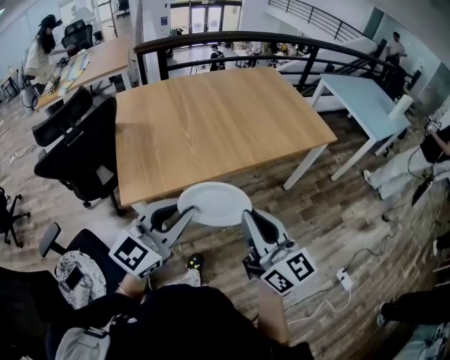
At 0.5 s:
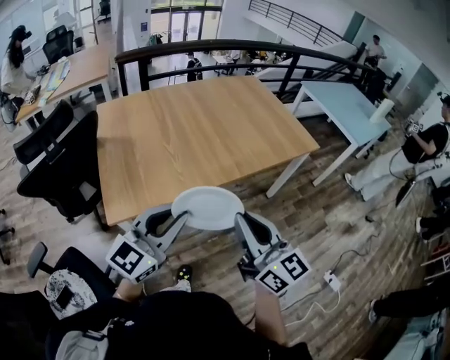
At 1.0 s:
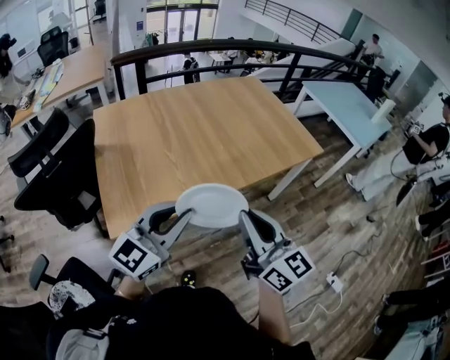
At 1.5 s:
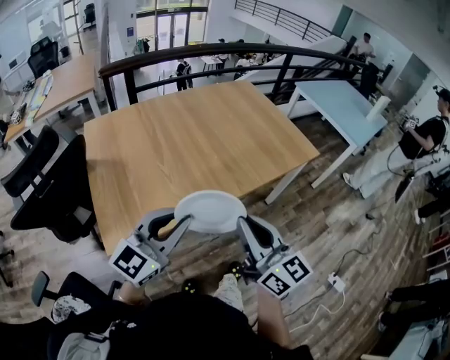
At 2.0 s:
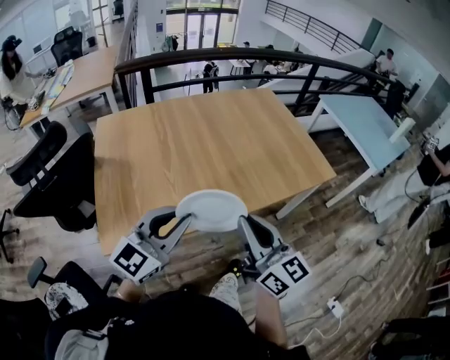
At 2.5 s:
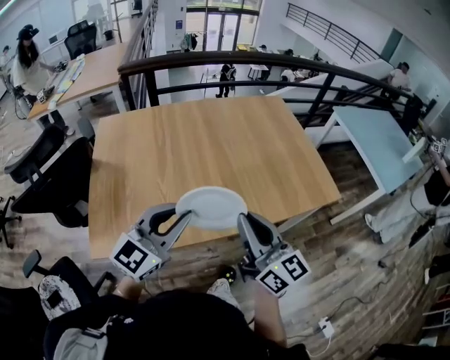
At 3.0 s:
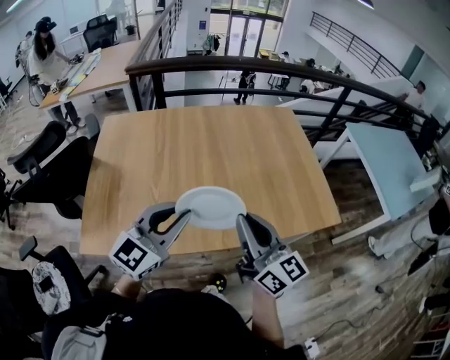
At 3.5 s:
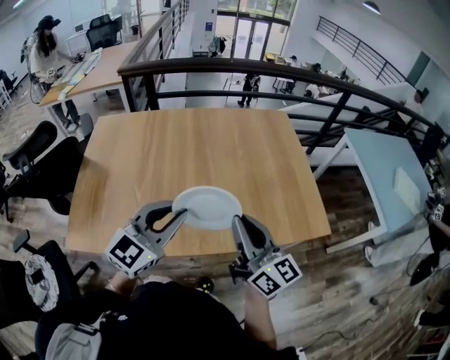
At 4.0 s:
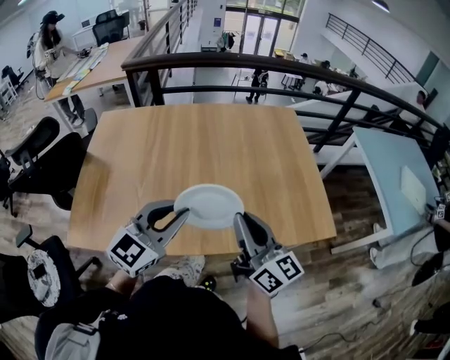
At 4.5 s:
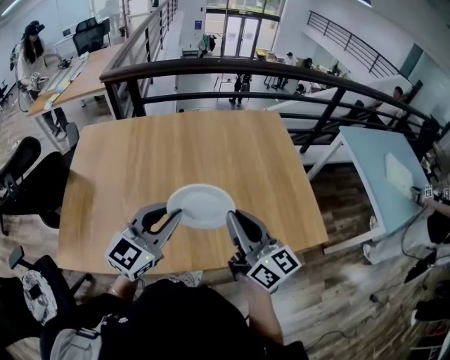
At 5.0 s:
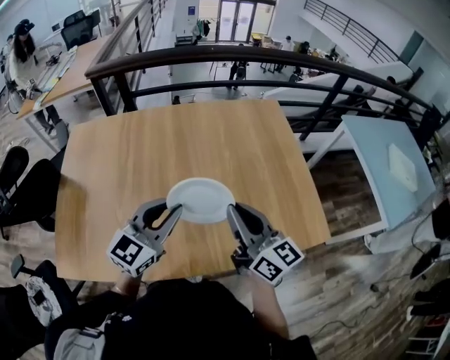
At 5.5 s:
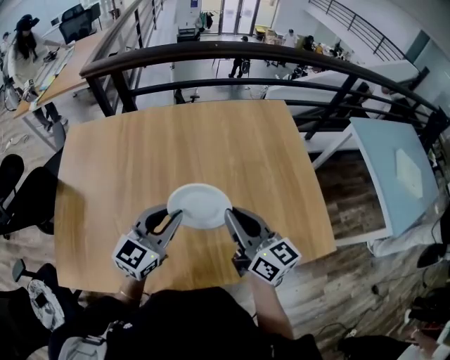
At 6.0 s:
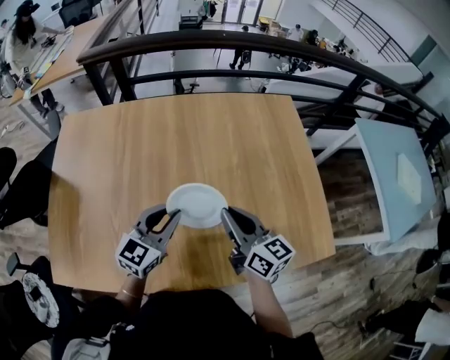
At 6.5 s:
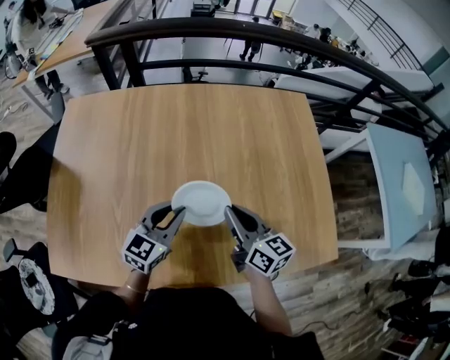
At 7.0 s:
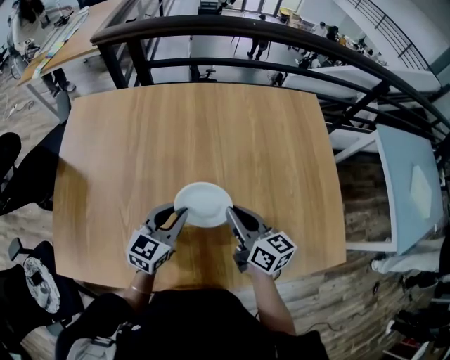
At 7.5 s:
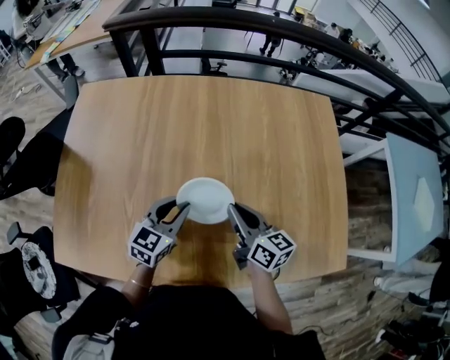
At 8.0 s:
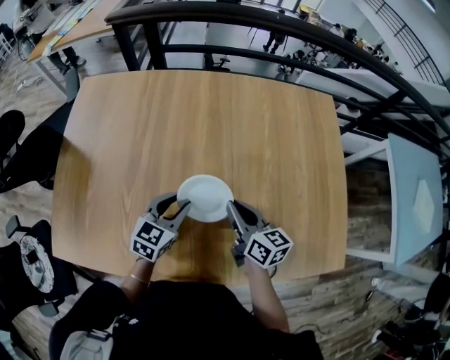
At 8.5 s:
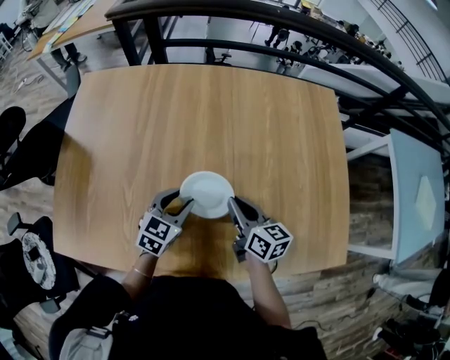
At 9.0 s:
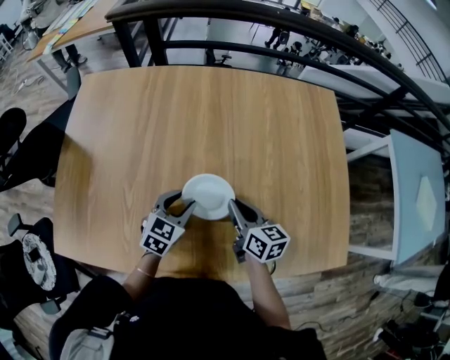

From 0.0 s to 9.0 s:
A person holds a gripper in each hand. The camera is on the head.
From 0.0 s to 2.0 s: The grippers both shift forward by roughly 25 cm.
From 2.0 s to 4.5 s: The grippers both shift forward and to the right by roughly 35 cm.
From 4.5 s to 7.0 s: Both grippers travel together downward and forward, approximately 25 cm. The left gripper swivels approximately 20 degrees. The right gripper changes its angle by some 30 degrees.
From 7.0 s to 9.0 s: Both grippers travel together downward, approximately 5 cm.

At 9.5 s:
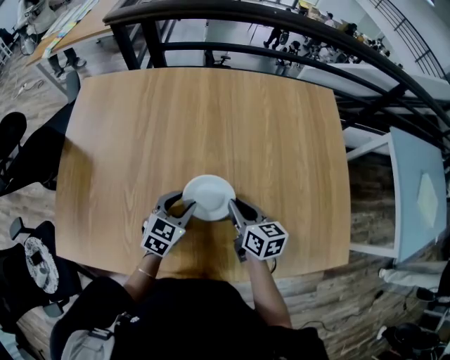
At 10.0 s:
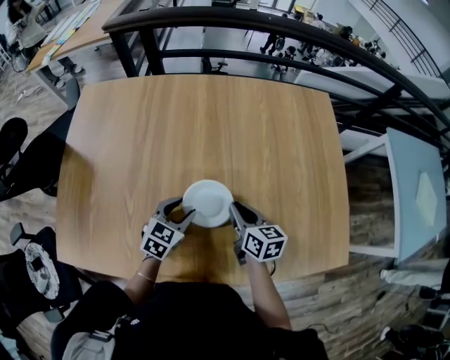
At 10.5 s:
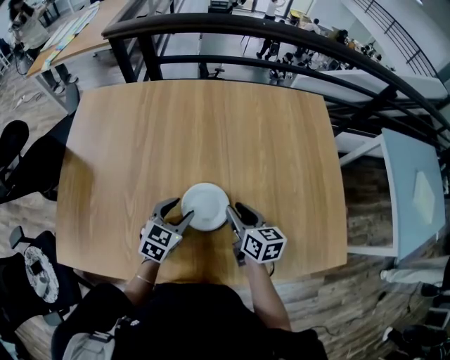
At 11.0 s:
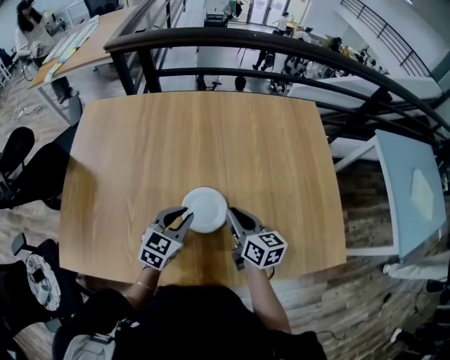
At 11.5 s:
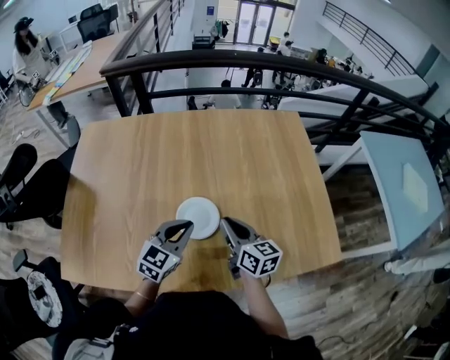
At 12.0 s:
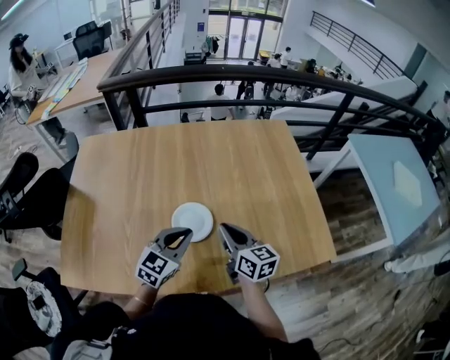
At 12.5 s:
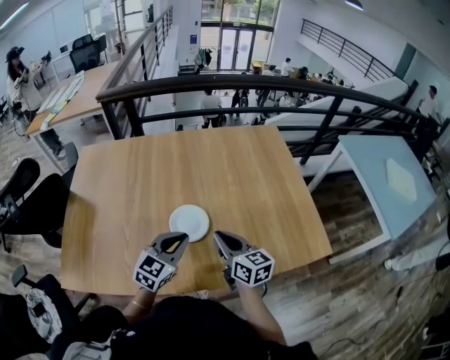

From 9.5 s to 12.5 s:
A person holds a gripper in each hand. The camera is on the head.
From 9.5 s to 11.0 s: The right gripper shifts by roughly 5 cm, and opens, then closes again, while the left gripper moves upward, some 5 cm.
From 11.0 s to 12.5 s: The right gripper shifts about 10 cm backward and upward, while the left gripper shifts approximately 15 cm backward, upward and to the right.

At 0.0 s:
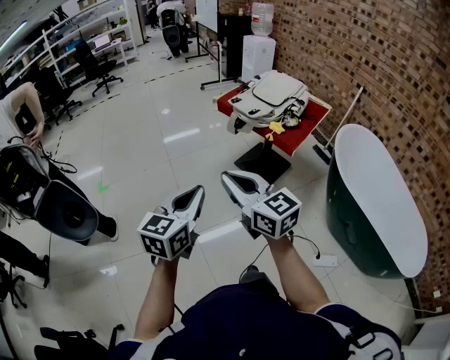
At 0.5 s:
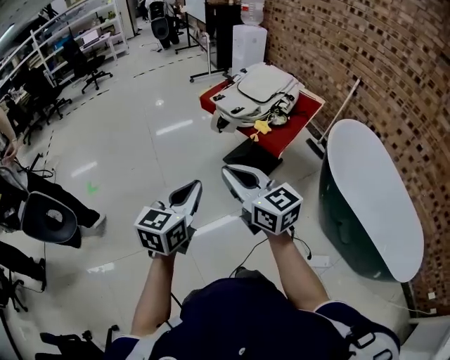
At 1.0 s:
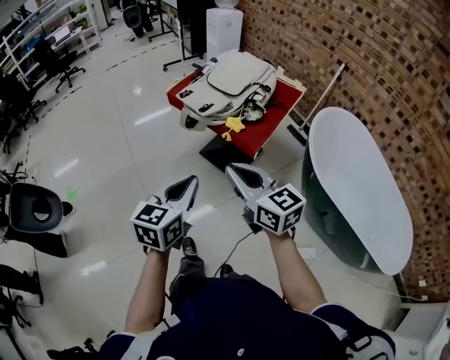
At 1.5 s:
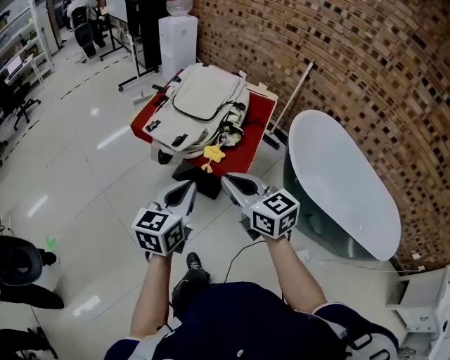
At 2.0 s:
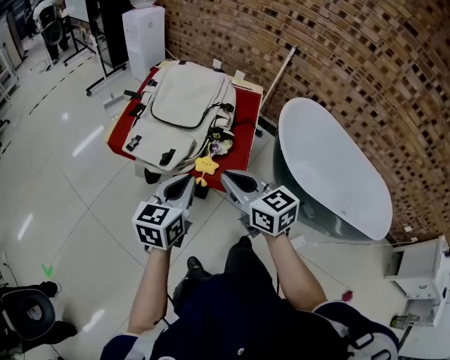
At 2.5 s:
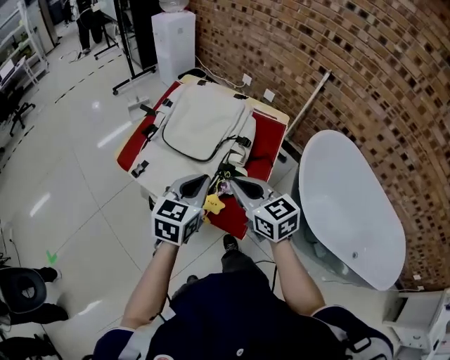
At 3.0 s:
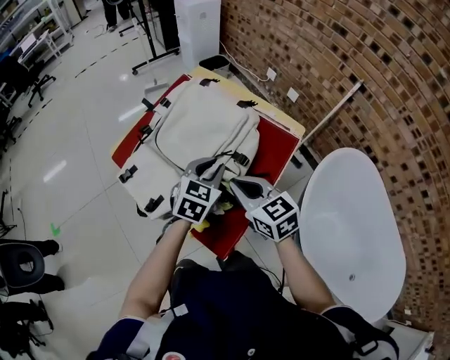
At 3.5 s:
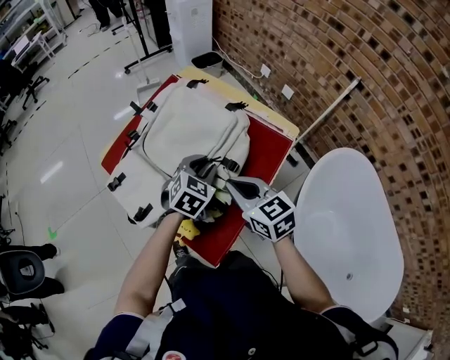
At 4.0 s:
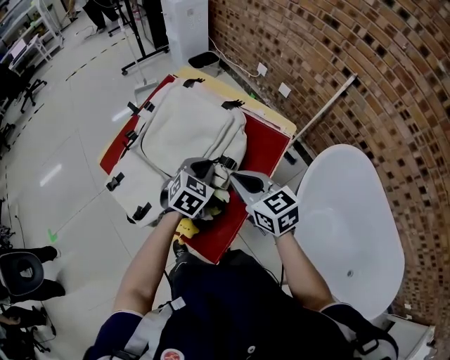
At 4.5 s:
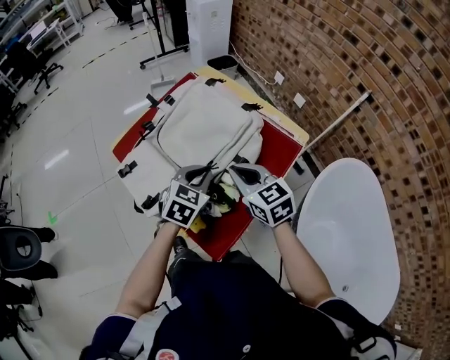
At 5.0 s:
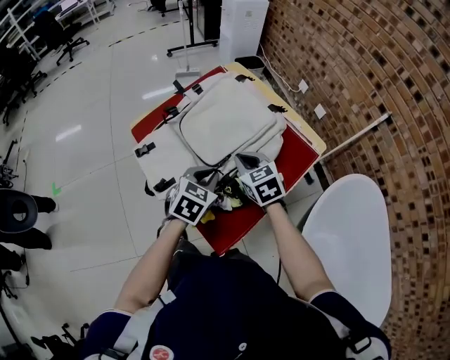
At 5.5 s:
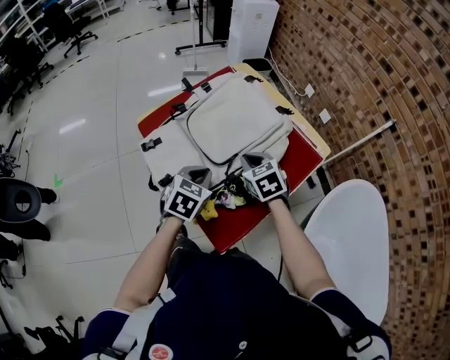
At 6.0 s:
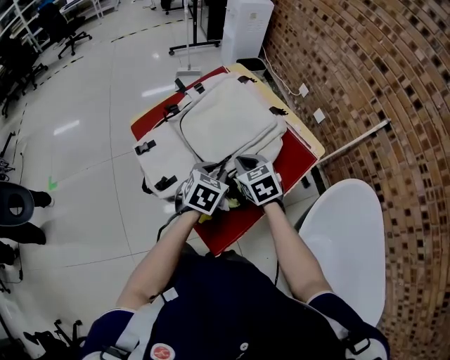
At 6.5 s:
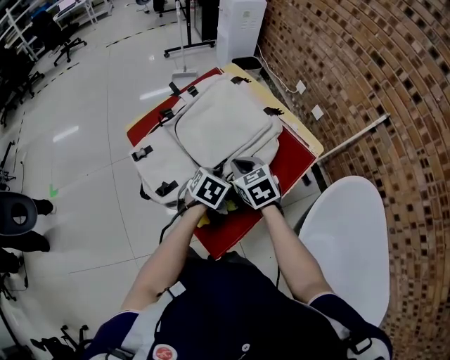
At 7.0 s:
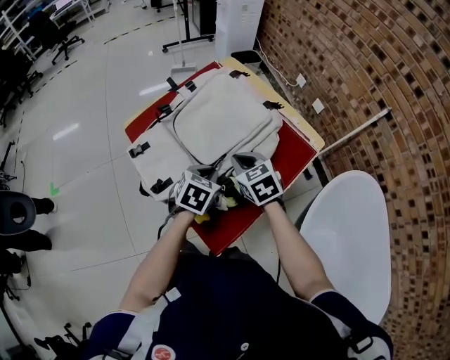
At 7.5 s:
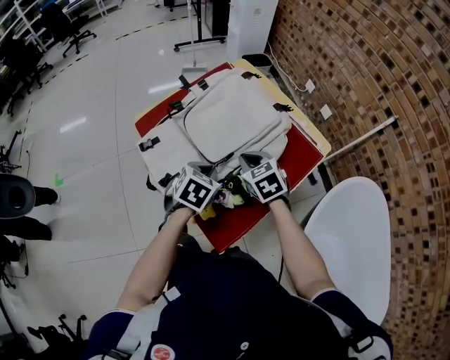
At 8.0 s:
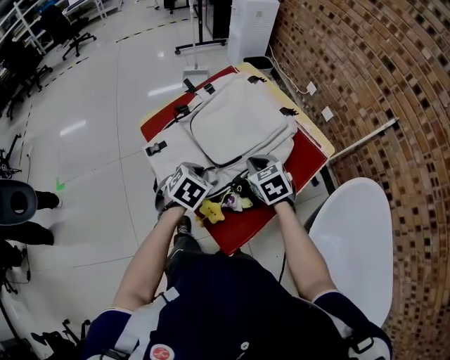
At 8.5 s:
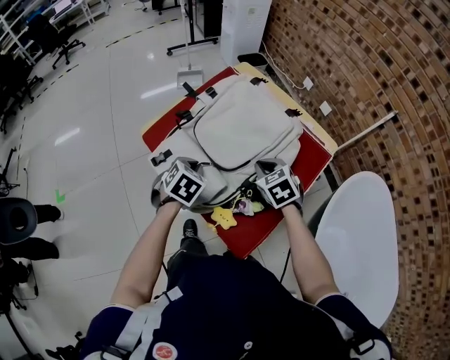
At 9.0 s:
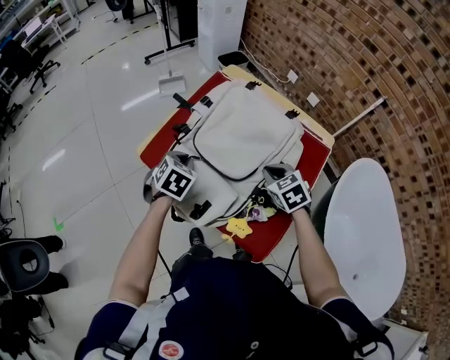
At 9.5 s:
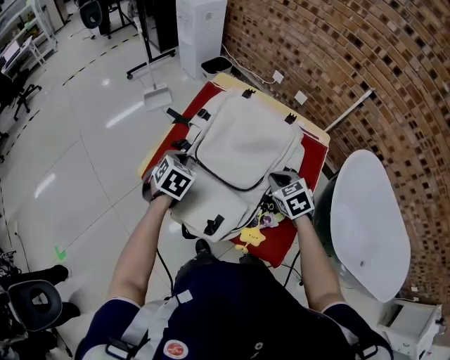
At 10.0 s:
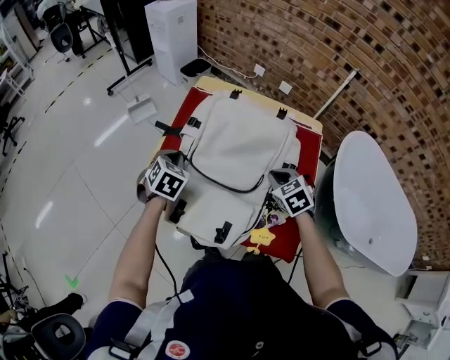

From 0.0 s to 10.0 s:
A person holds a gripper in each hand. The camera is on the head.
From 0.0 s to 2.0 s: The pair of grippers is taken some 50 cm. The right gripper rotates roughly 40 degrees; the left gripper rotates approximately 30 degrees.
From 2.0 s to 4.0 s: The right gripper moves forward and to the right, some 30 cm; the left gripper travels forward, to the right and downward by about 35 cm, and turns by about 40 degrees.
From 4.0 s to 6.0 s: The right gripper heads to the left, downward and forward, covering approximately 10 cm, and swivels about 30 degrees. The left gripper is displaced to the left by roughly 5 cm, and rotates approximately 30 degrees.
From 6.0 s to 8.0 s: The left gripper goes roughly 10 cm to the left, and closes its fingers.
From 8.0 s to 10.0 s: The right gripper turns by approximately 30 degrees; the left gripper travels forward and to the left by approximately 25 cm, and changes its angle by roughly 30 degrees.

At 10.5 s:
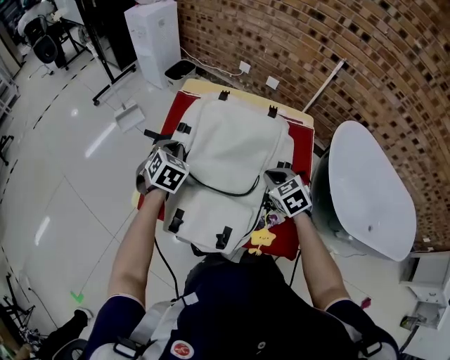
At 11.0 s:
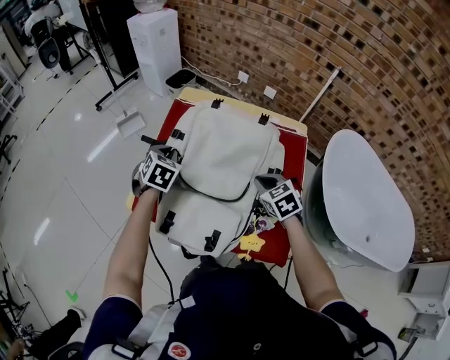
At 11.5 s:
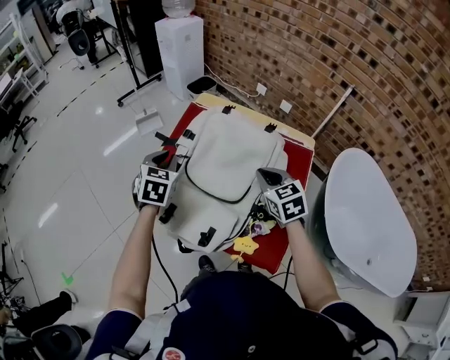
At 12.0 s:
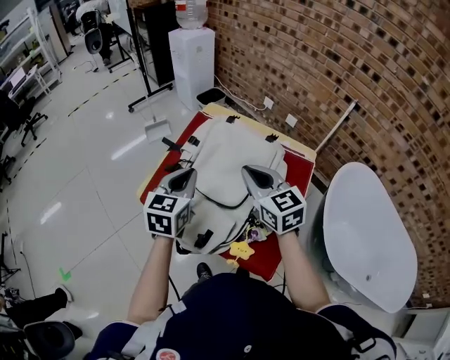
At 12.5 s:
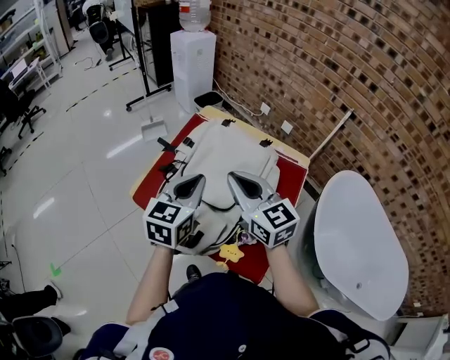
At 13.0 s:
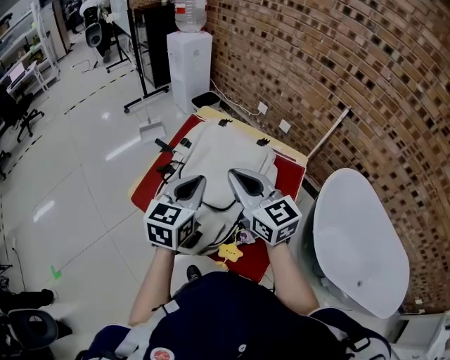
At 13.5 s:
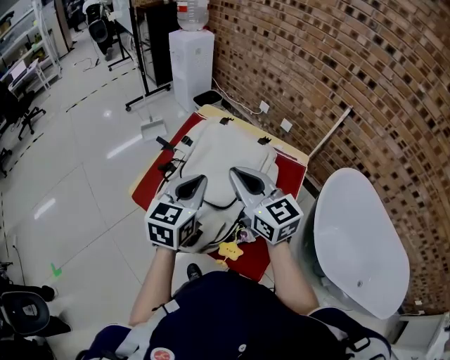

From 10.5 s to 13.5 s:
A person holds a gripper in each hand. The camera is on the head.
From 10.5 s to 12.0 s: The left gripper travels upward and backward by about 20 cm, and rotates some 40 degrees. Meanwhile the right gripper moves upward, some 20 cm, and tilts its fingers approximately 30 degrees upward.
From 12.0 s to 13.5 s: The right gripper changes place by roughly 5 cm. The left gripper shifts about 5 cm to the right.

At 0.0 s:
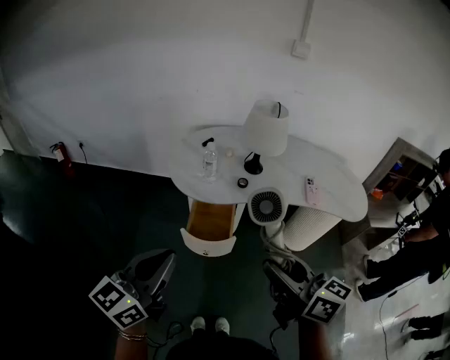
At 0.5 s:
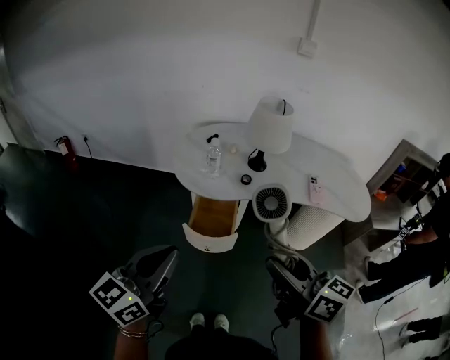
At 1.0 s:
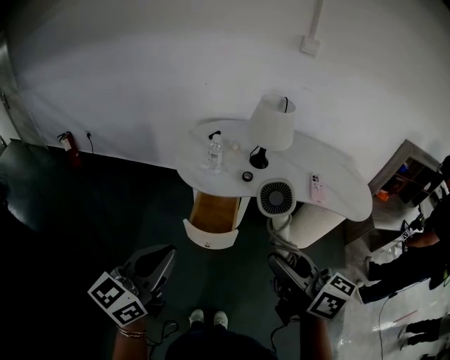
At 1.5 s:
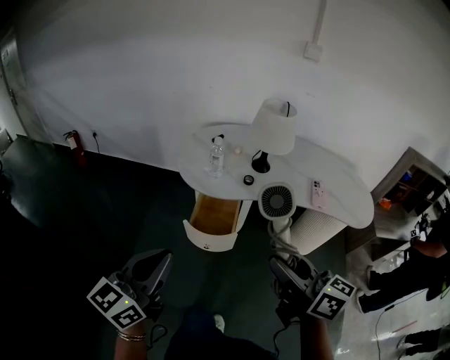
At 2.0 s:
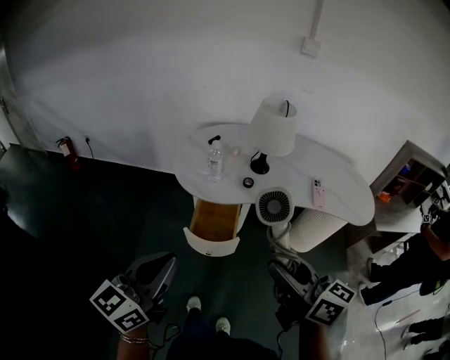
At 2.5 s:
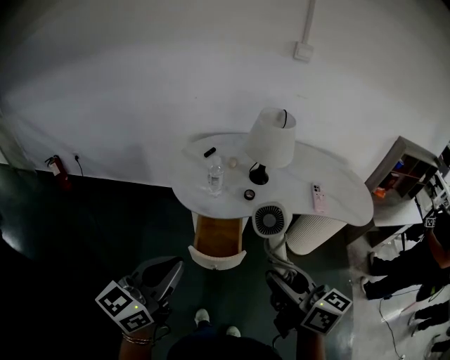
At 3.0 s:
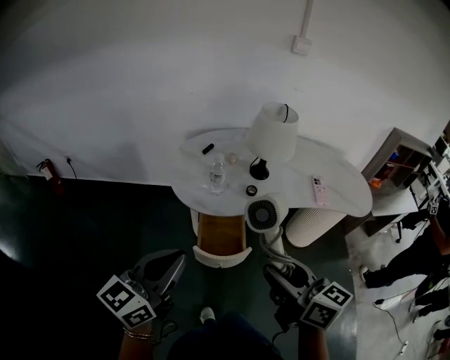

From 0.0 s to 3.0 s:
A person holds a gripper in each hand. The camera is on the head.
From 0.0 s to 1.5 s: The grippers move only a little.
From 1.5 s to 3.0 s: The right gripper travels to the left and forward by roughly 10 cm. The left gripper goes about 15 cm forward and to the left.
